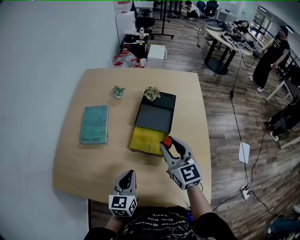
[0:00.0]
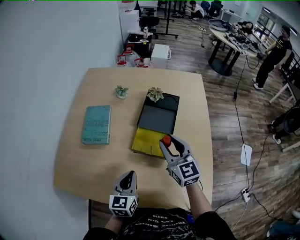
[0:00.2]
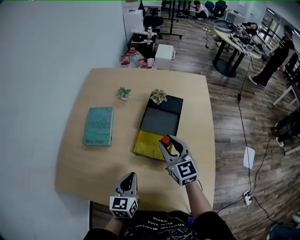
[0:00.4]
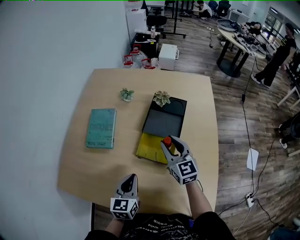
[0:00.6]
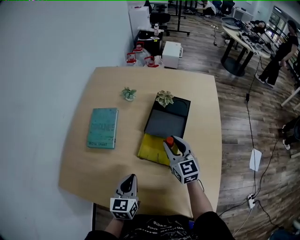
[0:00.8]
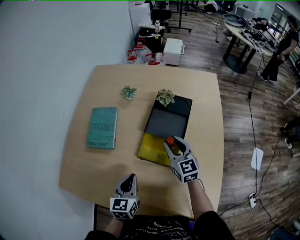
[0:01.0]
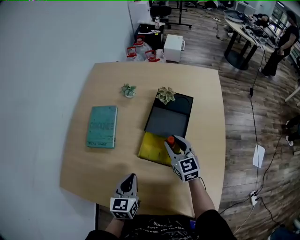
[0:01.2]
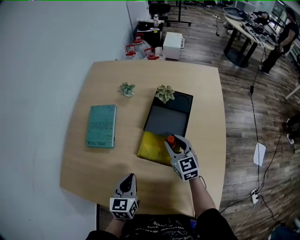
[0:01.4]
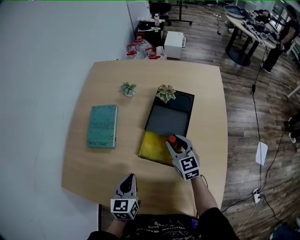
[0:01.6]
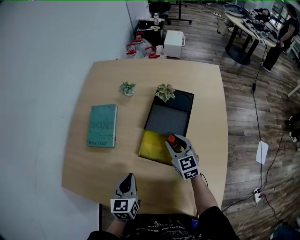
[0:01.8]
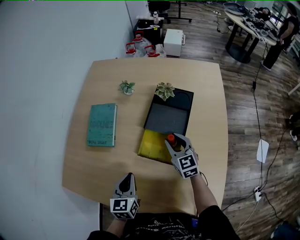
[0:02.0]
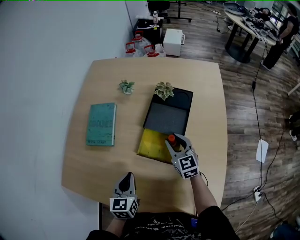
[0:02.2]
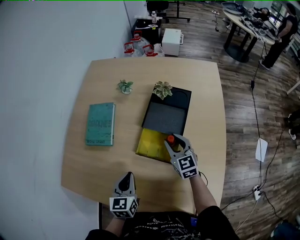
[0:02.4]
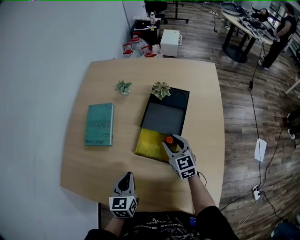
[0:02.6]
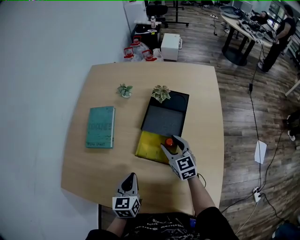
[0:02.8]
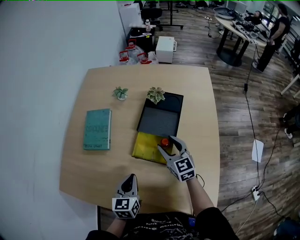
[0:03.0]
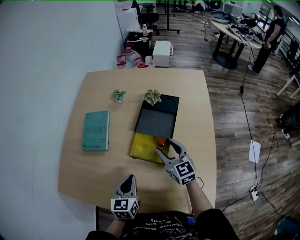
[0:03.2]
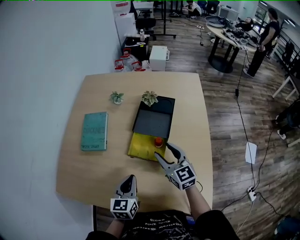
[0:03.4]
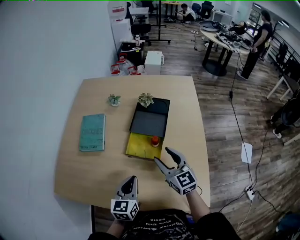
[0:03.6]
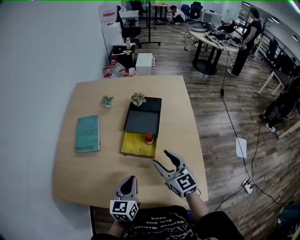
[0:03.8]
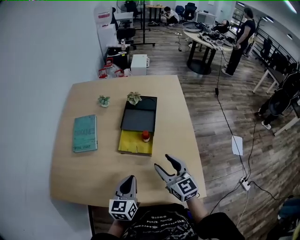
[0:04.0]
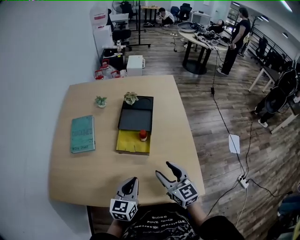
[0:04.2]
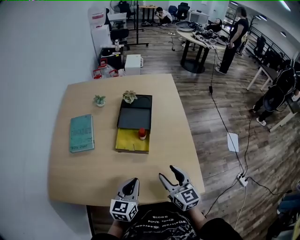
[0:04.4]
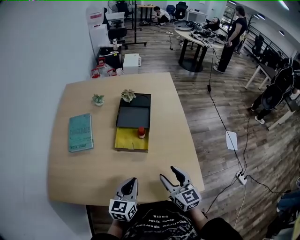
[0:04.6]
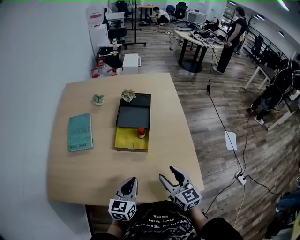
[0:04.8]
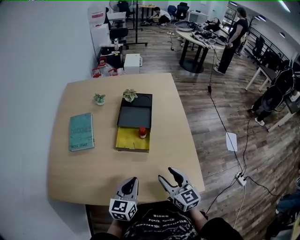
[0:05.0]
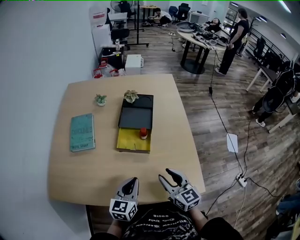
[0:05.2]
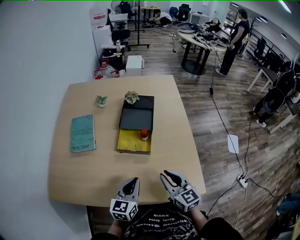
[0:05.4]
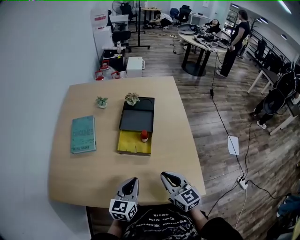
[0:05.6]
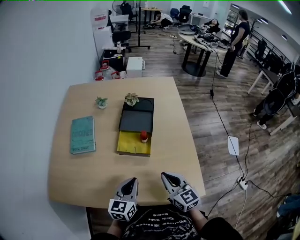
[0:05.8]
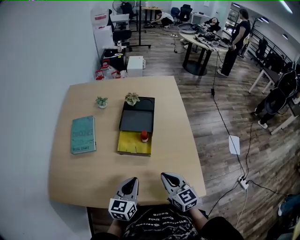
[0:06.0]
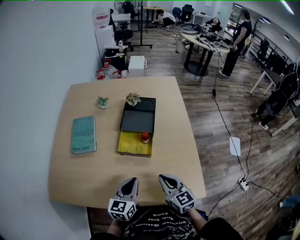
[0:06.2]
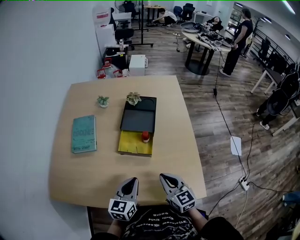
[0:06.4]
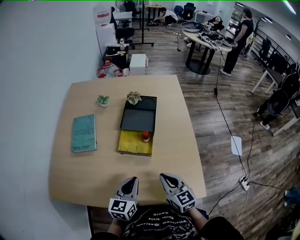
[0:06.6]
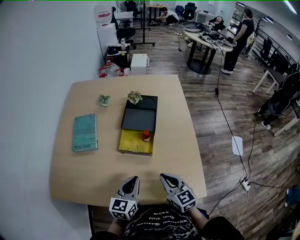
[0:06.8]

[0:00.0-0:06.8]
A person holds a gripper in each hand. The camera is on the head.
0:00.0 to 0:01.4: The right gripper is displaced downward and forward by approximately 20 cm. Meanwhile the left gripper travels forward and downward by approximately 10 cm.
0:01.4 to 0:02.8: The right gripper opens its fingers.
0:02.8 to 0:04.0: The left gripper travels backward and upward by approximately 15 cm, and turns by roughly 20 degrees; the right gripper travels backward and upward by about 25 cm.
0:04.0 to 0:05.4: The right gripper goes approximately 5 cm backward, and closes.
0:05.4 to 0:06.8: The grippers stay close to where they were, moving slightly.

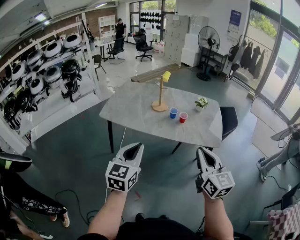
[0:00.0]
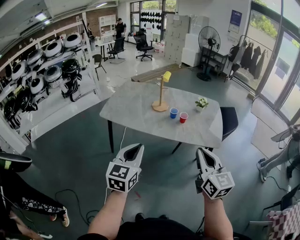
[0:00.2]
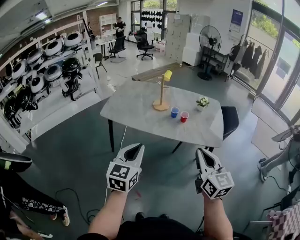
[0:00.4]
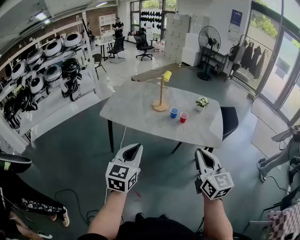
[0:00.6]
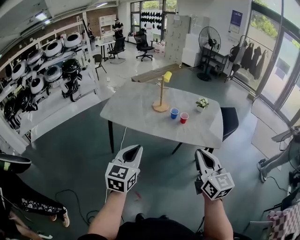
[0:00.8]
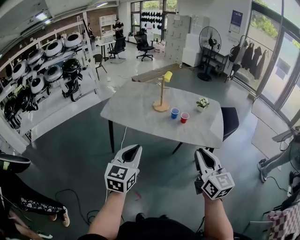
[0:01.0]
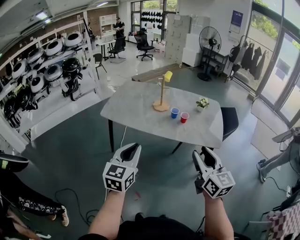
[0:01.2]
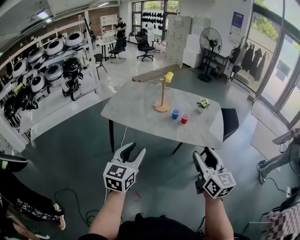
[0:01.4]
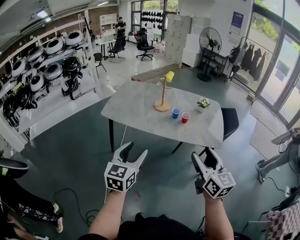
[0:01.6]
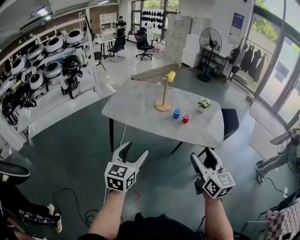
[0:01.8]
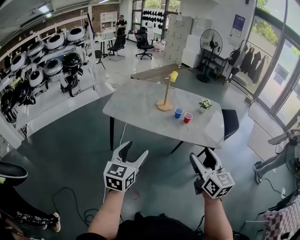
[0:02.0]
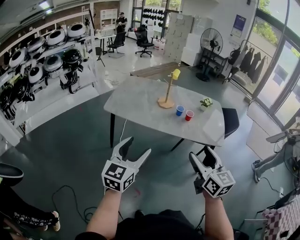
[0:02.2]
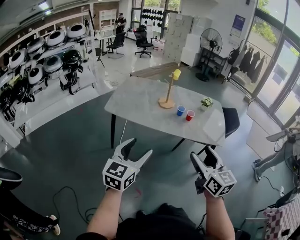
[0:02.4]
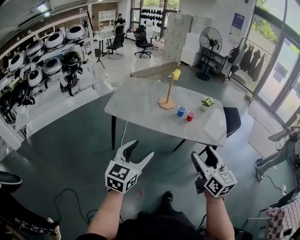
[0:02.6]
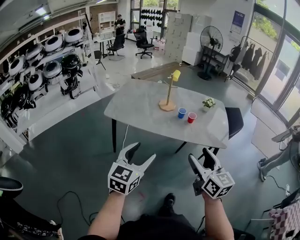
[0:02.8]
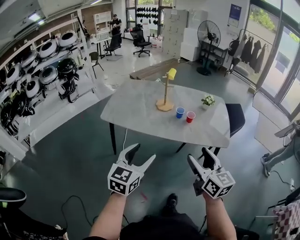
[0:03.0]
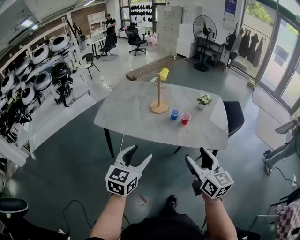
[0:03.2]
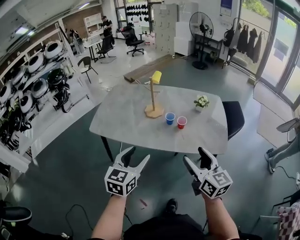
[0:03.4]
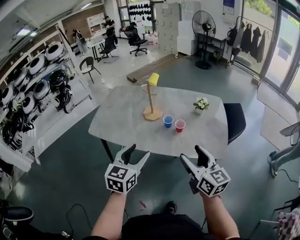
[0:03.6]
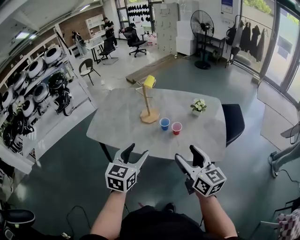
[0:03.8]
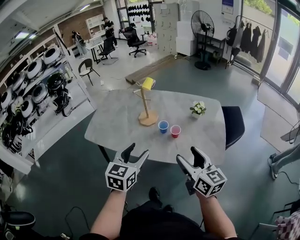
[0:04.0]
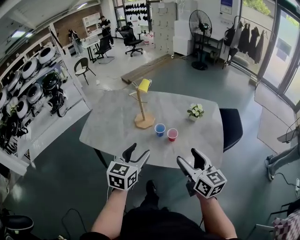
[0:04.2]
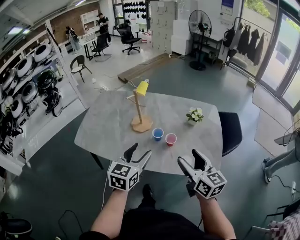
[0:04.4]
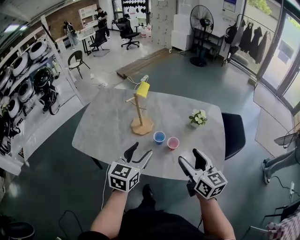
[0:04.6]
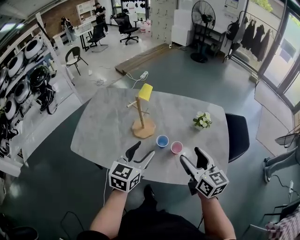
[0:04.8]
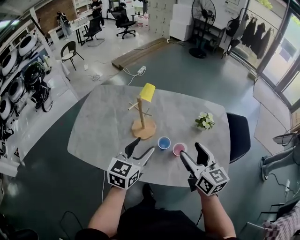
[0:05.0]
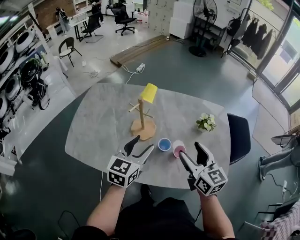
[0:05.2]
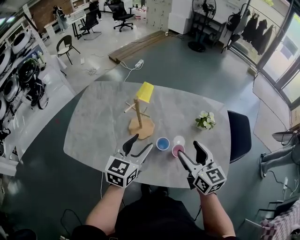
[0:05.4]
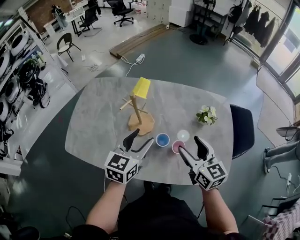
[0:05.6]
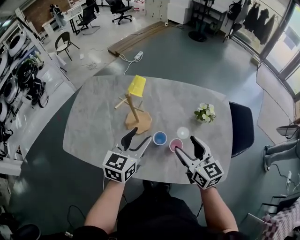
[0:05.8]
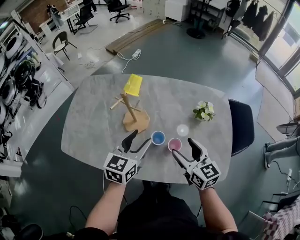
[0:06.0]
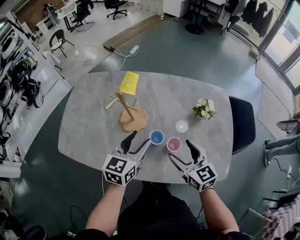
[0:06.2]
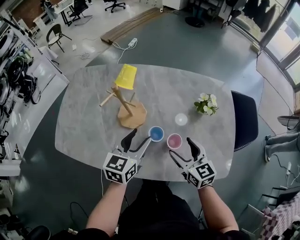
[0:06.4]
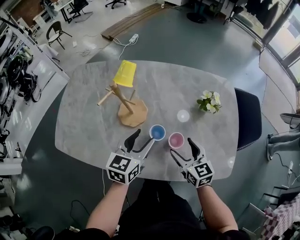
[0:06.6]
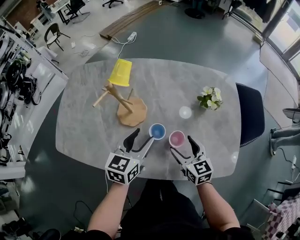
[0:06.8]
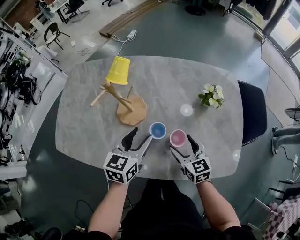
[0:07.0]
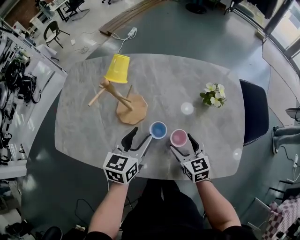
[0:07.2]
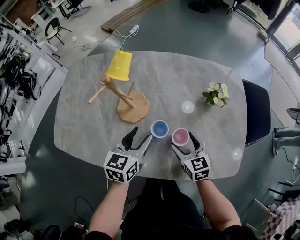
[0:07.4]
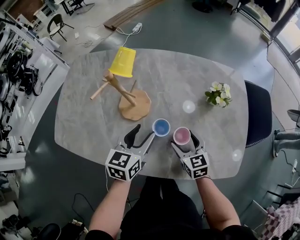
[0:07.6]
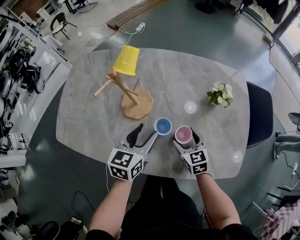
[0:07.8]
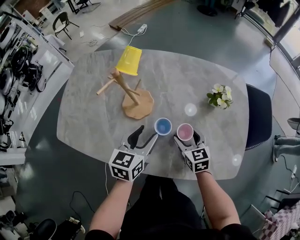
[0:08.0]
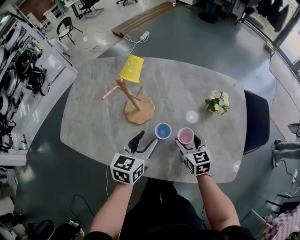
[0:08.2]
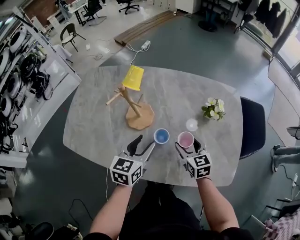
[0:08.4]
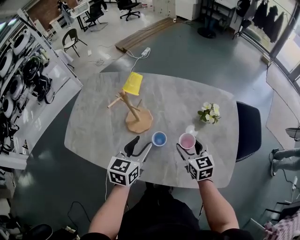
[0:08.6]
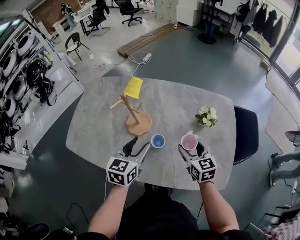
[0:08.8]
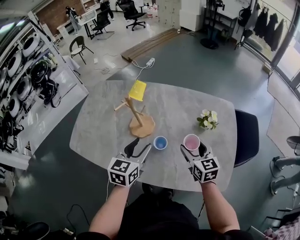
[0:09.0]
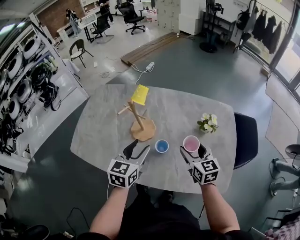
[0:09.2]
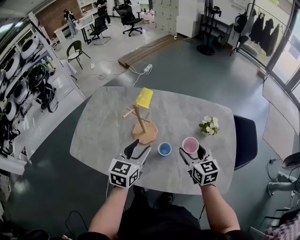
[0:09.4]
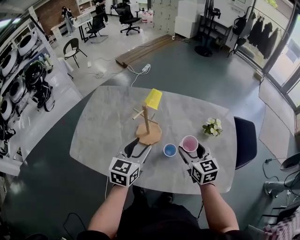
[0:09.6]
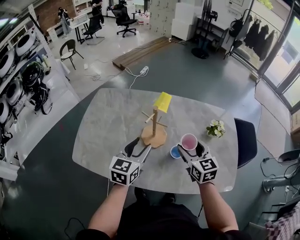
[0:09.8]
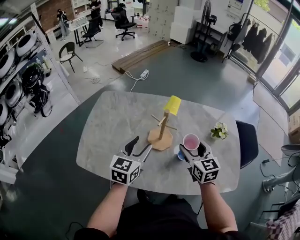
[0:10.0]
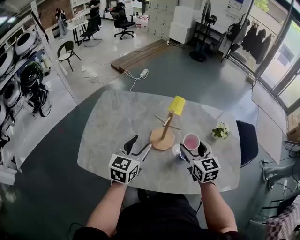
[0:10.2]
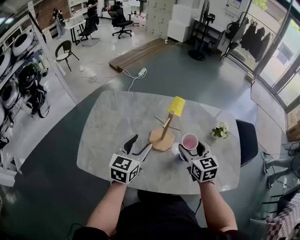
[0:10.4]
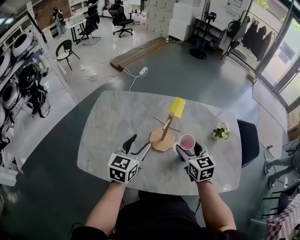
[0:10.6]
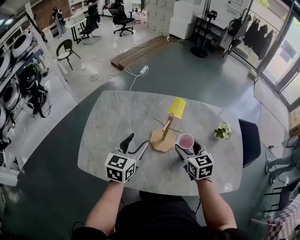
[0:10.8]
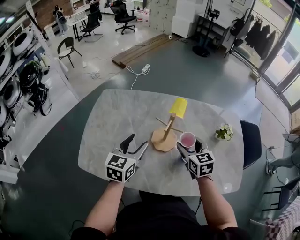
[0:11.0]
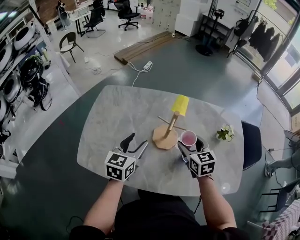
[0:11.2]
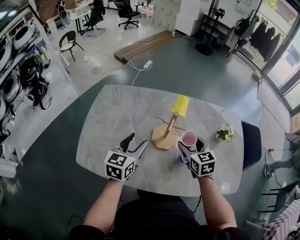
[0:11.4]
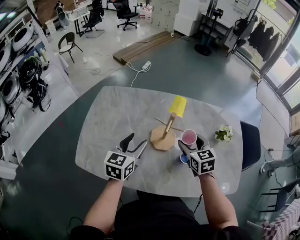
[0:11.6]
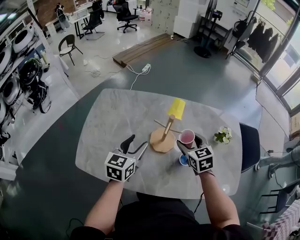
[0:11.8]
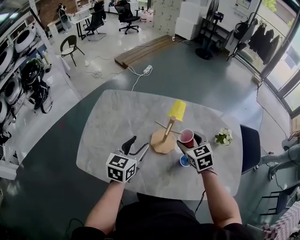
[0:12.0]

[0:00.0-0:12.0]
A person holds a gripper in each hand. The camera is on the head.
0:00.0 to 0:01.6: The right gripper opens up. The left gripper opens up.
0:01.6 to 0:03.0: The right gripper ends up approximately 10 cm from where it was.
0:03.0 to 0:04.4: Both grippers travel together forward and to the right, some 30 cm.
0:04.4 to 0:06.0: The right gripper shifts some 20 cm forward and downward, while the left gripper is displaced forward by about 20 cm.
0:06.0 to 0:07.6: The left gripper shifts roughly 10 cm downward. Meanwhile the right gripper is displaced downward by some 20 cm.
0:07.6 to 0:09.0: Both grippers travel together upward, about 10 cm.
0:09.0 to 0:10.4: The grippers both shift to the left by some 20 cm.
0:10.4 to 0:12.0: The right gripper goes some 5 cm forward.

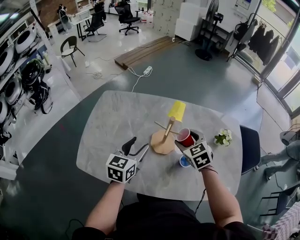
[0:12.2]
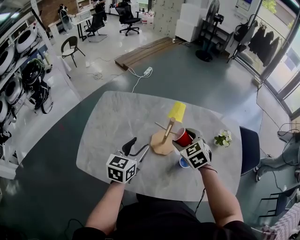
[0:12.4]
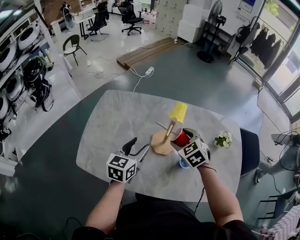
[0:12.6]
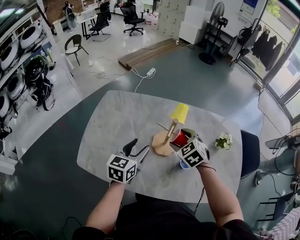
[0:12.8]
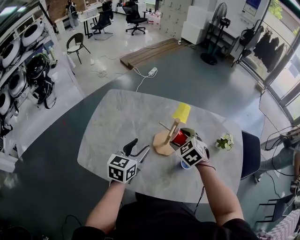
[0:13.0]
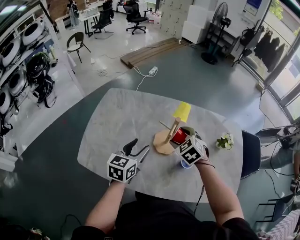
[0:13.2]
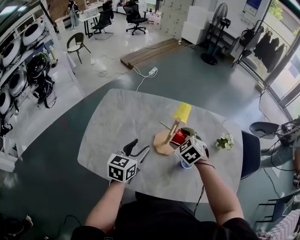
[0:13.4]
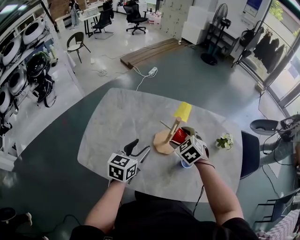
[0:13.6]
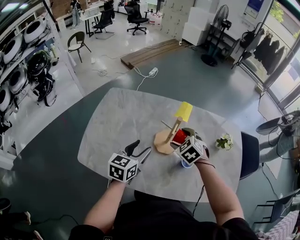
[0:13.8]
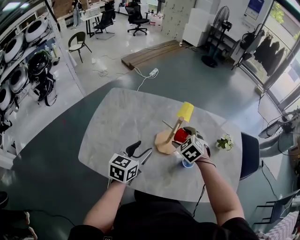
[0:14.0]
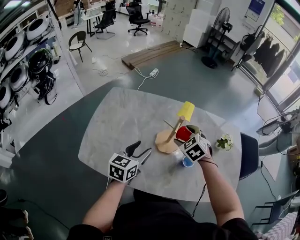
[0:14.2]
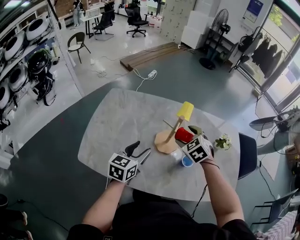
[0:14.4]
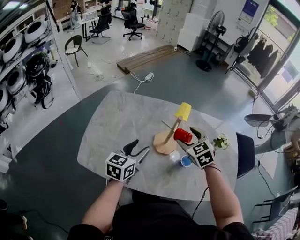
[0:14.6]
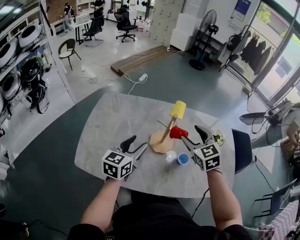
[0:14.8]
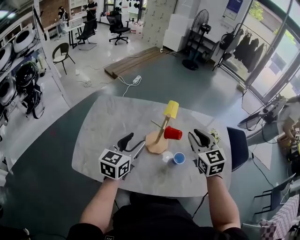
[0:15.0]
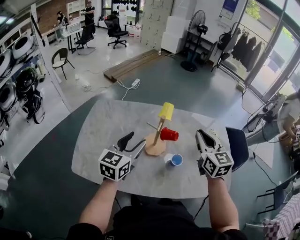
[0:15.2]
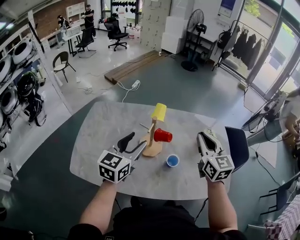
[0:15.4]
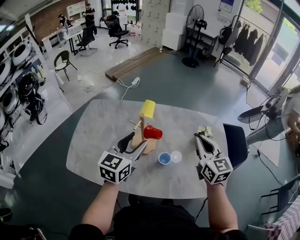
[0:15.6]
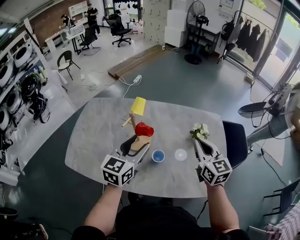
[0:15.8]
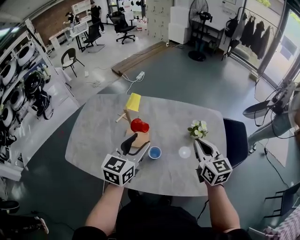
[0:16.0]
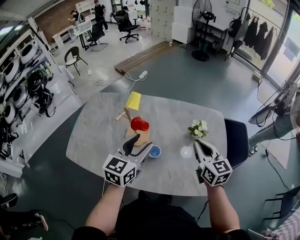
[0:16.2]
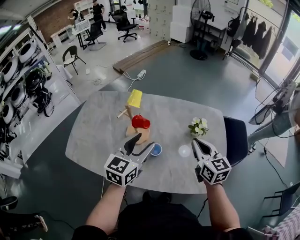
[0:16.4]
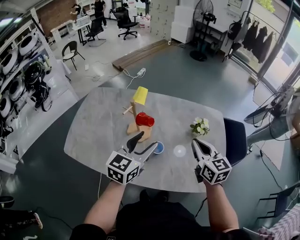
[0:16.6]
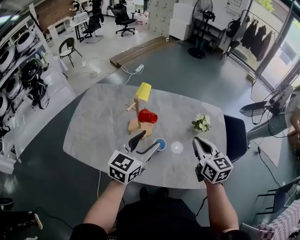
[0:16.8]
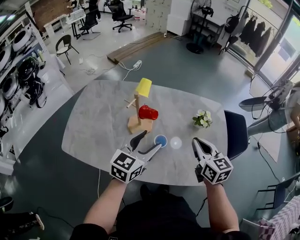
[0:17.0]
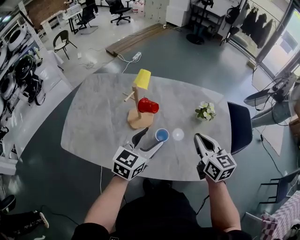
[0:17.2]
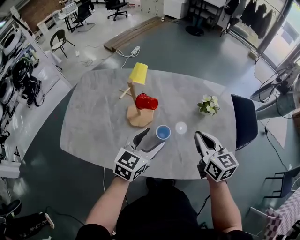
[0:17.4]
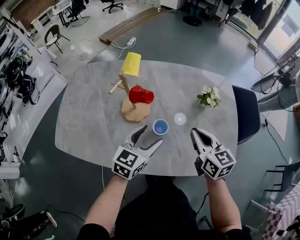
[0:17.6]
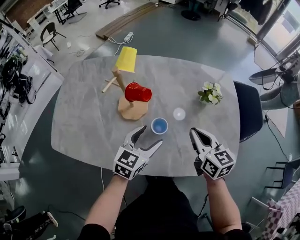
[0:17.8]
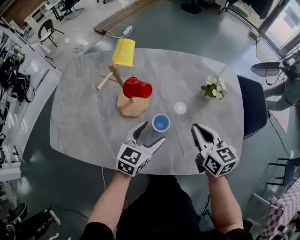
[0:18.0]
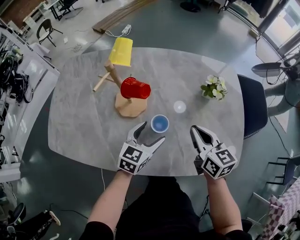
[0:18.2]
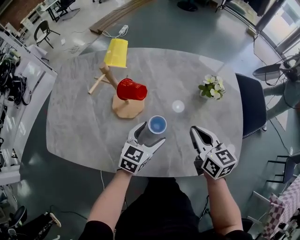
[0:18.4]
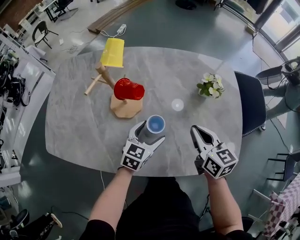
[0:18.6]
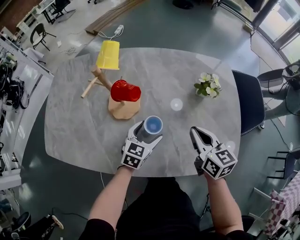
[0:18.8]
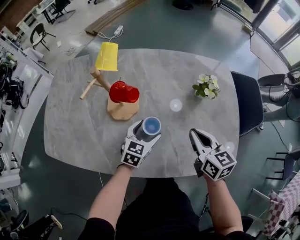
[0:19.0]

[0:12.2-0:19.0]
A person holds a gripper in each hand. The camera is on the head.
0:12.2 to 0:13.6: The right gripper shifts by some 5 cm.
0:13.6 to 0:15.0: The right gripper heads upward and to the right, covering some 15 cm, points its fingers approximately 30 degrees further upward, and closes its fingers. Meanwhile the left gripper heads upward, covering some 5 cm.
0:15.0 to 0:16.2: The grippers both shift to the right by some 20 cm. The right gripper turns by roughly 20 degrees.
0:16.2 to 0:17.6: The left gripper travels downward by roughly 15 cm. Meanwhile the right gripper goes about 10 cm downward and to the left.
0:17.6 to 0:19.0: The left gripper goes about 15 cm downward. Meanwhile the right gripper is displaced downward by some 5 cm.
